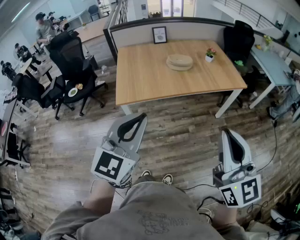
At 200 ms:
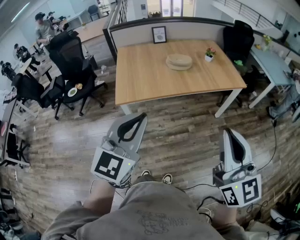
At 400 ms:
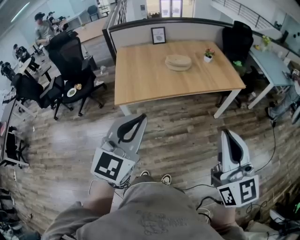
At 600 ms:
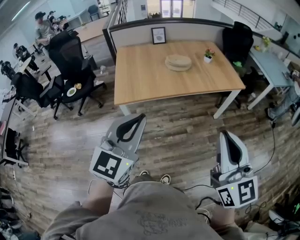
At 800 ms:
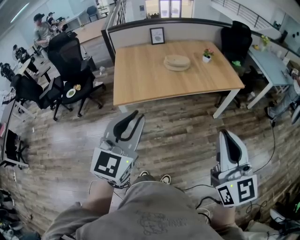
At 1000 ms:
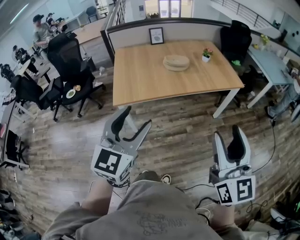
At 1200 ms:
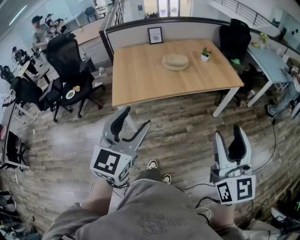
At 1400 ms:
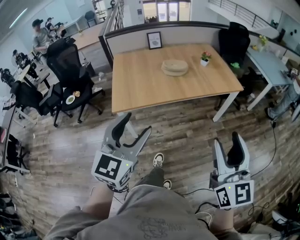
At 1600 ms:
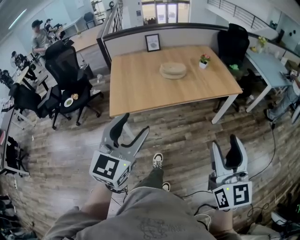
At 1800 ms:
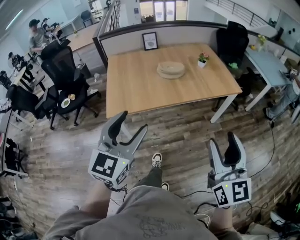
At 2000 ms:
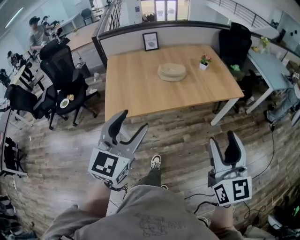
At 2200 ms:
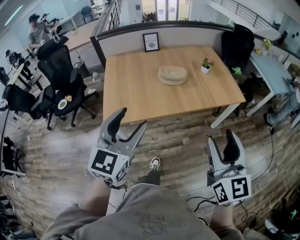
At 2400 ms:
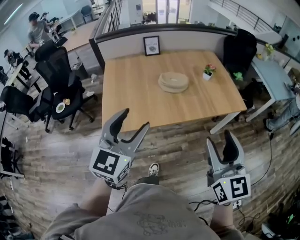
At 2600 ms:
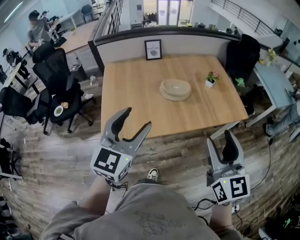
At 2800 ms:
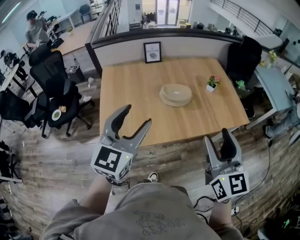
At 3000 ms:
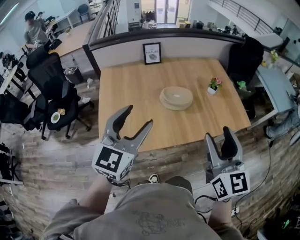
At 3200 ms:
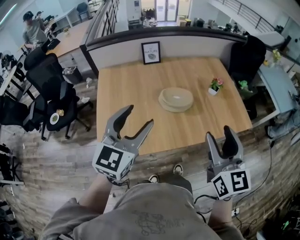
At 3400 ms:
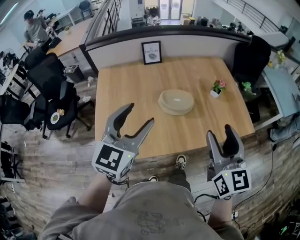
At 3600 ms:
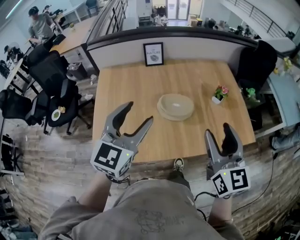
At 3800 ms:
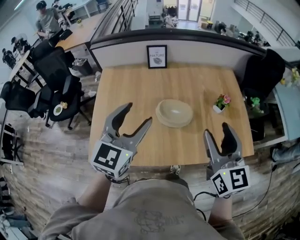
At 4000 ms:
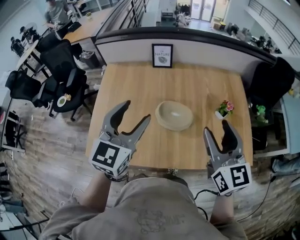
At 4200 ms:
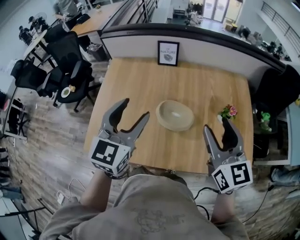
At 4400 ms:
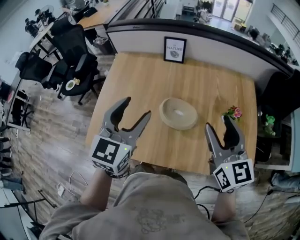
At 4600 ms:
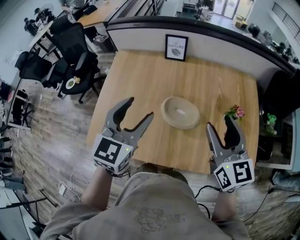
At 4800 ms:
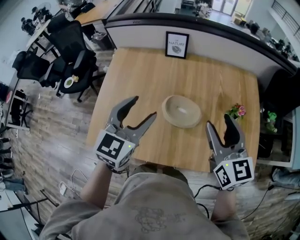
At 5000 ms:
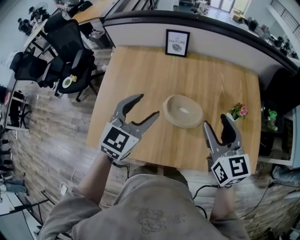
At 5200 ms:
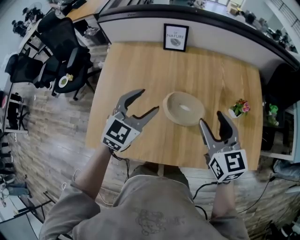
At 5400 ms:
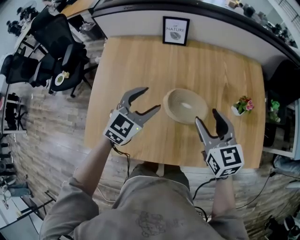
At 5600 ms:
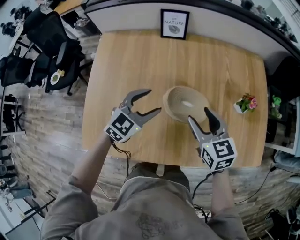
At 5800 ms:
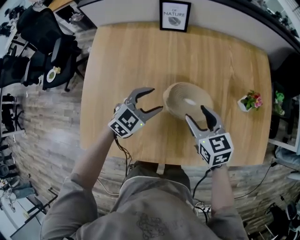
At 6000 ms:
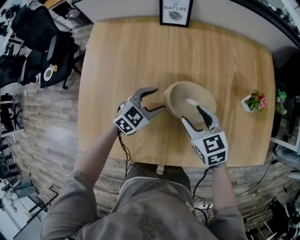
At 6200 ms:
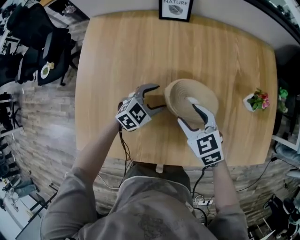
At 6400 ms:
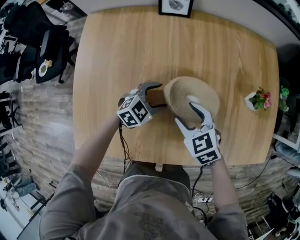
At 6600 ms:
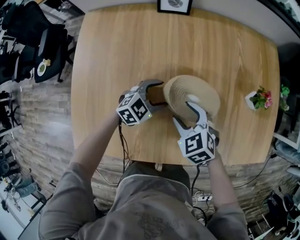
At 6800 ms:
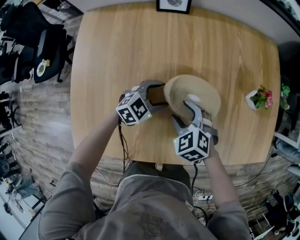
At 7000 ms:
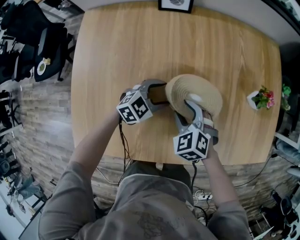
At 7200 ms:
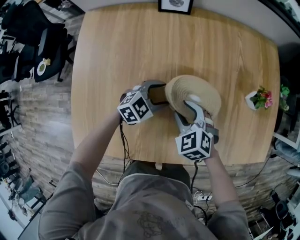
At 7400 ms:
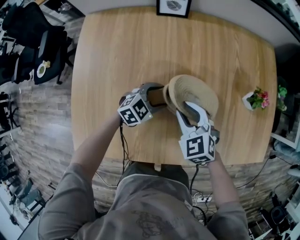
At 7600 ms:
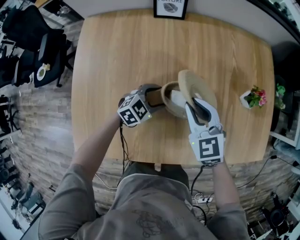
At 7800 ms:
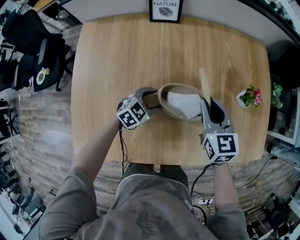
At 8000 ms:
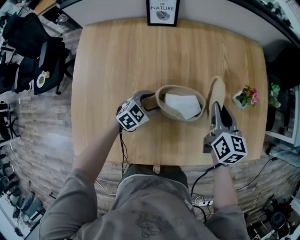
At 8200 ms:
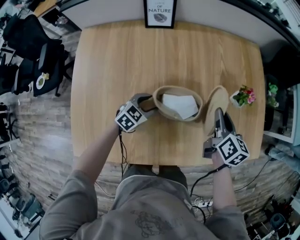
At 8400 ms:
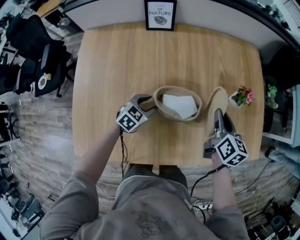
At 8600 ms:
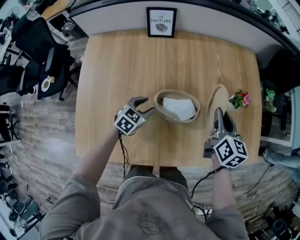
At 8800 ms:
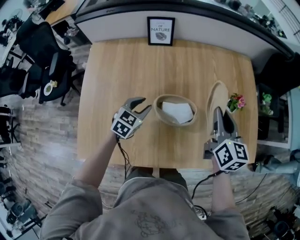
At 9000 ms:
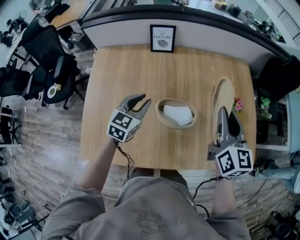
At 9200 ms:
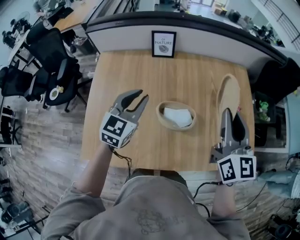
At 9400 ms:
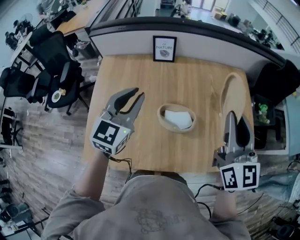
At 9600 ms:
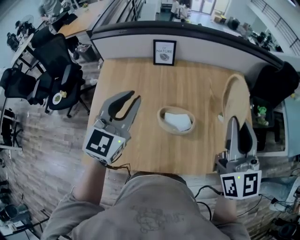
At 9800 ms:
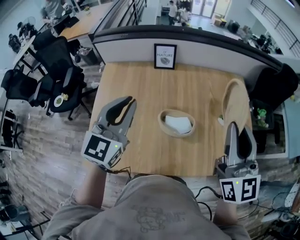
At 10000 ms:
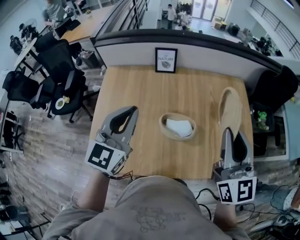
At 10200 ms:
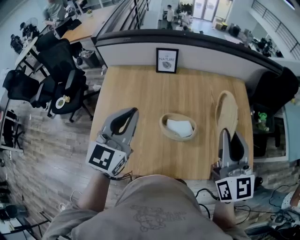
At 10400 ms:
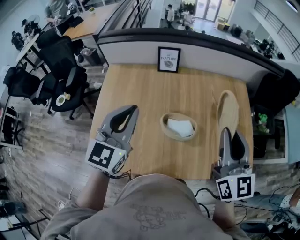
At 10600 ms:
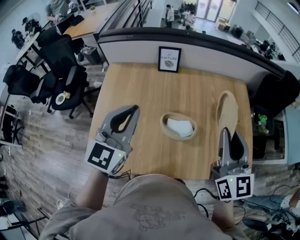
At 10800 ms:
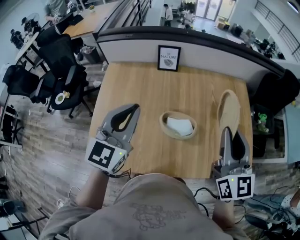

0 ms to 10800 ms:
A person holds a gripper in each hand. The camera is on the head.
0 ms to 1600 ms: The right gripper changes place by approximately 5 cm, and opens. Meanwhile the left gripper shifts approximately 5 cm forward, and opens its fingers.
1600 ms to 3000 ms: Both grippers move forward, about 35 cm.
3000 ms to 4600 ms: The right gripper shifts by approximately 30 cm, and rotates some 30 degrees. The left gripper changes place by some 20 cm, and swivels some 20 degrees.
4600 ms to 6200 ms: The right gripper goes approximately 35 cm downward and to the left, and points its fingers about 40 degrees further downward. The left gripper goes approximately 35 cm downward, and swivels approximately 50 degrees.
6200 ms to 7800 ms: The right gripper heads forward, to the right and upward, covering approximately 10 cm, swivels some 30 degrees, and closes up.
7800 ms to 9200 ms: Both grippers move upward, some 30 cm. The left gripper swivels about 40 degrees, and closes up. Meanwhile the right gripper swivels about 30 degrees.
9200 ms to 10800 ms: The left gripper moves upward and backward, roughly 15 cm, while the right gripper moves backward, about 5 cm.

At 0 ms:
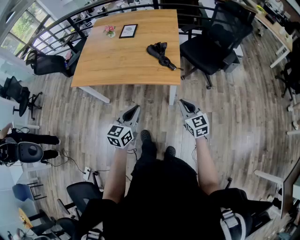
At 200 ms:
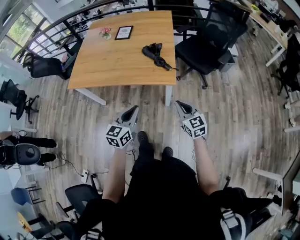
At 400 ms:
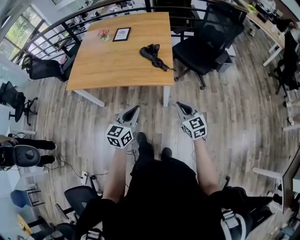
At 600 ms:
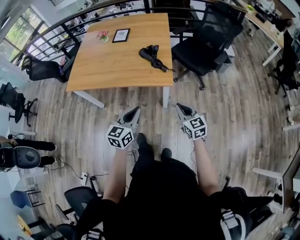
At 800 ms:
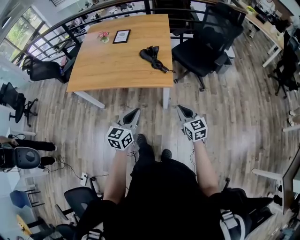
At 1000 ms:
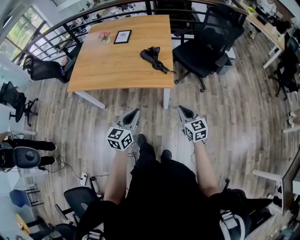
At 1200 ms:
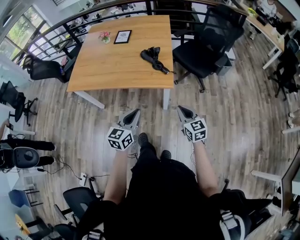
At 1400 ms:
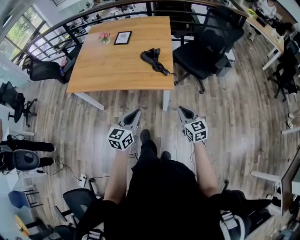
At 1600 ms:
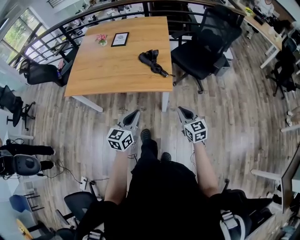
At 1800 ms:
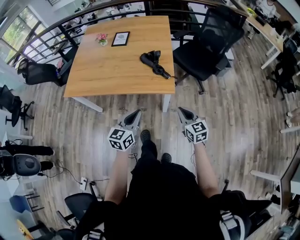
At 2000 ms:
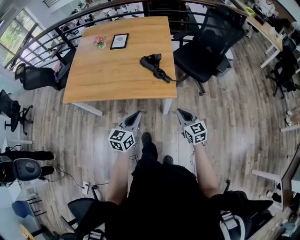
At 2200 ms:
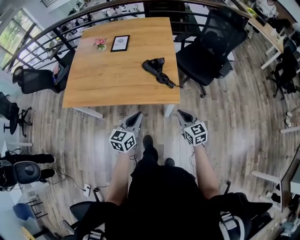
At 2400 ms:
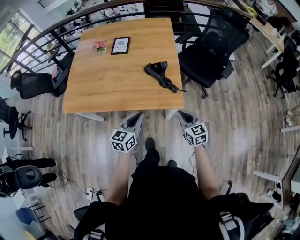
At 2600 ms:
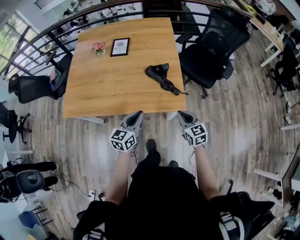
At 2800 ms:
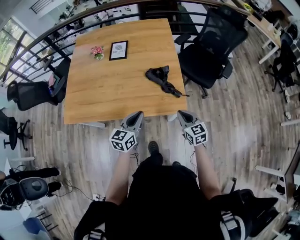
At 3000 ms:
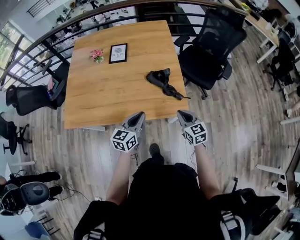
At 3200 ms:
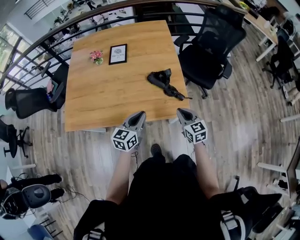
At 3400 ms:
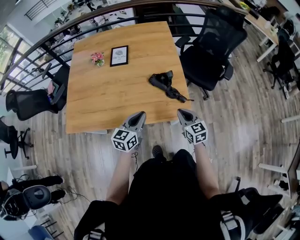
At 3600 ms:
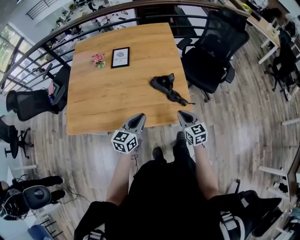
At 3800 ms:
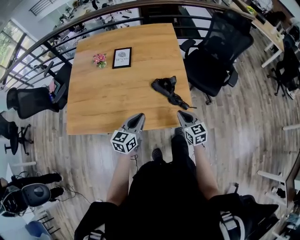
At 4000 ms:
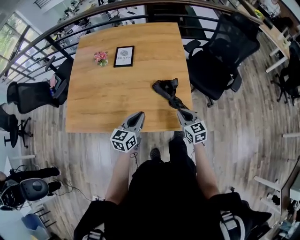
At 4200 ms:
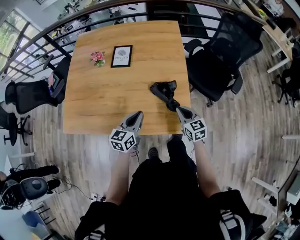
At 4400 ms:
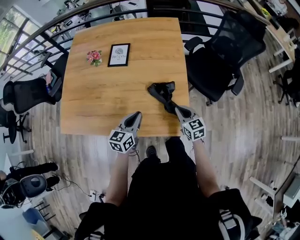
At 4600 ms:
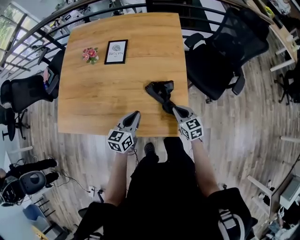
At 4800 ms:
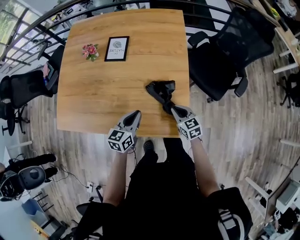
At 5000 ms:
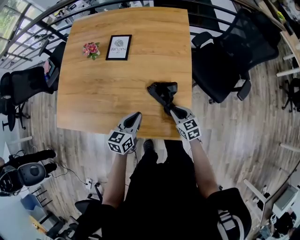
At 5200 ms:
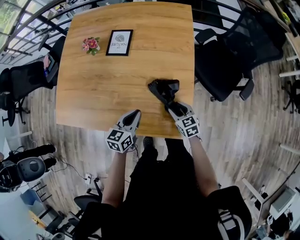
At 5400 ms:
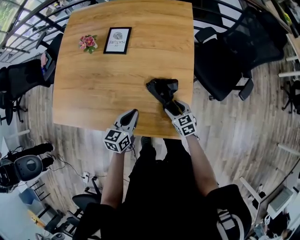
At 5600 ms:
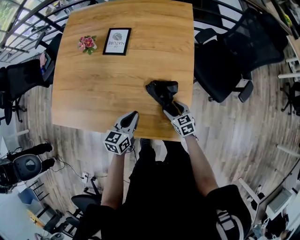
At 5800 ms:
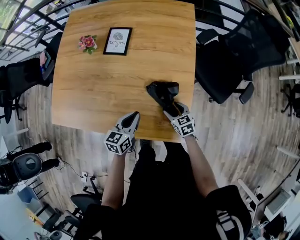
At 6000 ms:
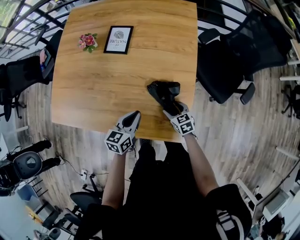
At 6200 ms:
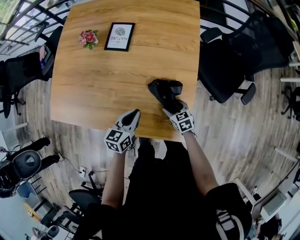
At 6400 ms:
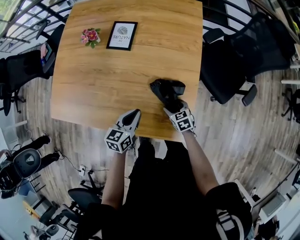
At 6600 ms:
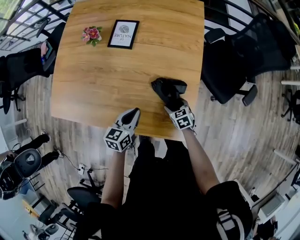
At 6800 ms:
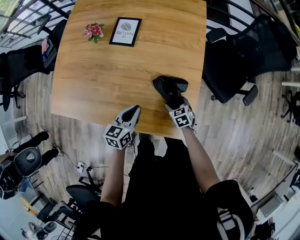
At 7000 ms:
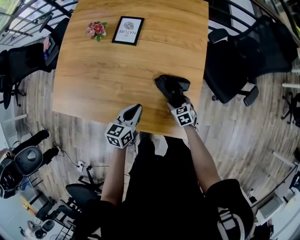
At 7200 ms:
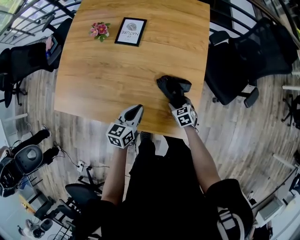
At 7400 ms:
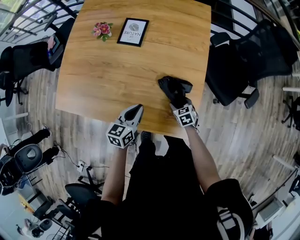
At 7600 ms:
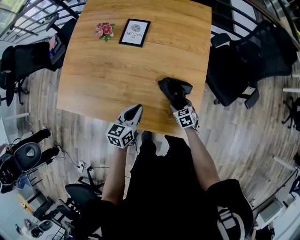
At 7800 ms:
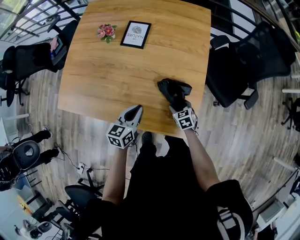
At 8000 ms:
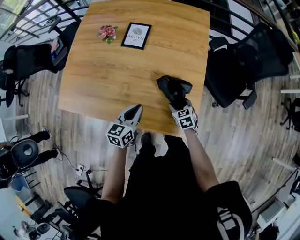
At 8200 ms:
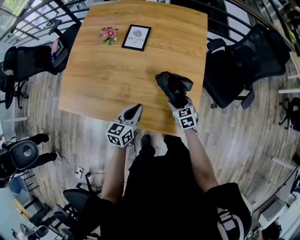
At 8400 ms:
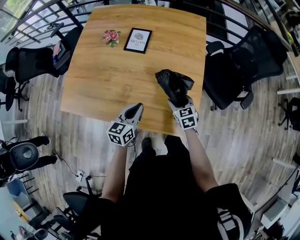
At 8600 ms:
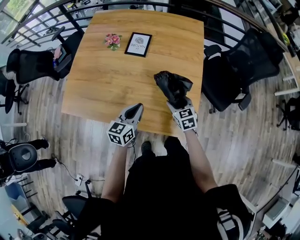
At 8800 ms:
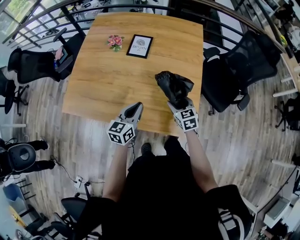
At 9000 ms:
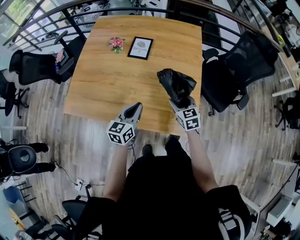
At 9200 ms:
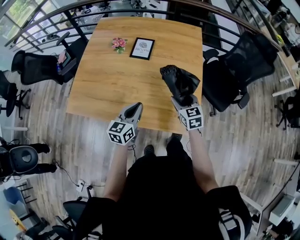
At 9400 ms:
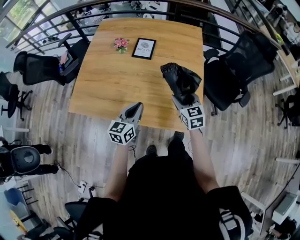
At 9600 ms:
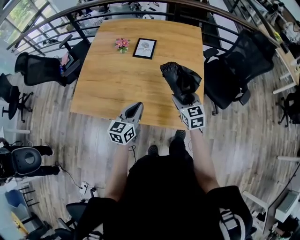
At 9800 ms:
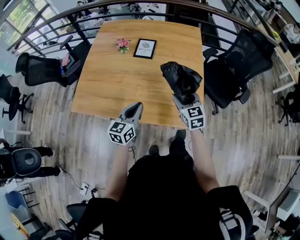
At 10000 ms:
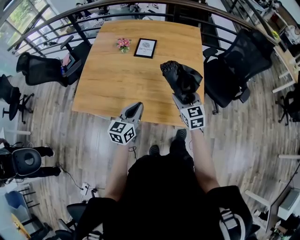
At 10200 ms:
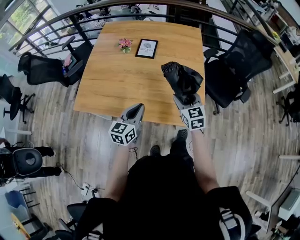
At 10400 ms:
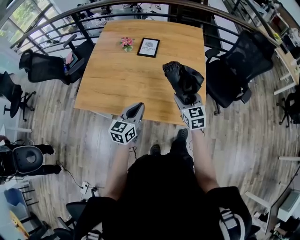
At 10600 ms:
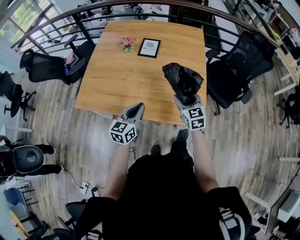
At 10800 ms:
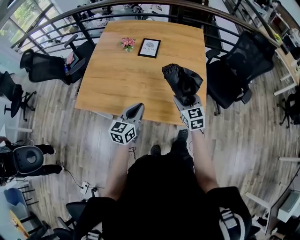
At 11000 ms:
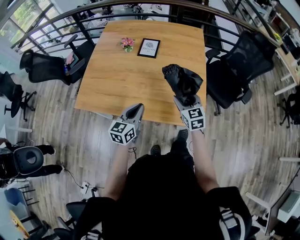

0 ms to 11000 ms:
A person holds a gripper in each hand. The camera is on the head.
0 ms to 1600 ms: The grippers stay close to where they were, moving slightly.
1600 ms to 3200 ms: The grippers both shift forward and to the left by roughly 25 cm.
3200 ms to 4800 ms: Both grippers travel together forward and downward, some 15 cm.
4800 ms to 6200 ms: The left gripper ends up roughly 5 cm from where it was, while the right gripper travels downward by about 10 cm, and opens its fingers.
6200 ms to 7800 ms: The left gripper ends up about 5 cm from where it was.
7800 ms to 9400 ms: The left gripper goes approximately 15 cm upward, to the left and backward. The right gripper shifts roughly 25 cm upward, and changes its angle by approximately 30 degrees.
9400 ms to 11000 ms: The left gripper changes place by approximately 5 cm, while the right gripper ends up roughly 5 cm from where it was.

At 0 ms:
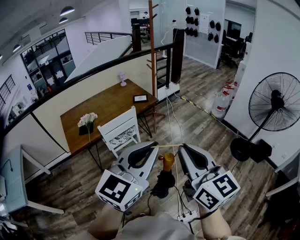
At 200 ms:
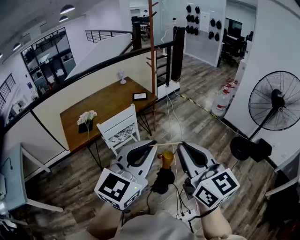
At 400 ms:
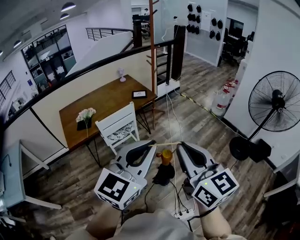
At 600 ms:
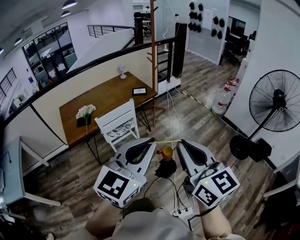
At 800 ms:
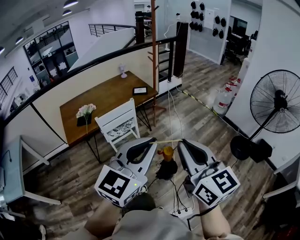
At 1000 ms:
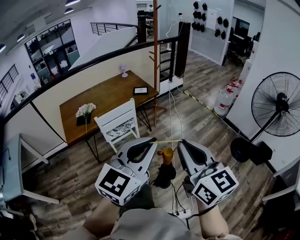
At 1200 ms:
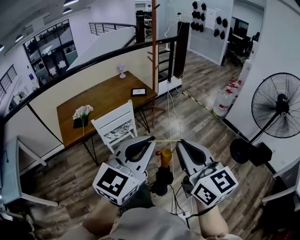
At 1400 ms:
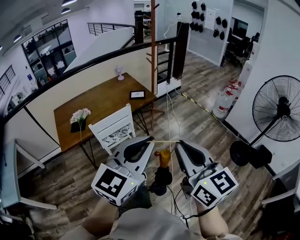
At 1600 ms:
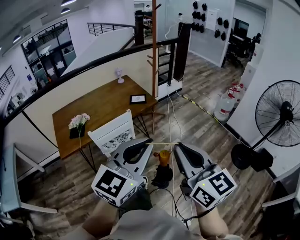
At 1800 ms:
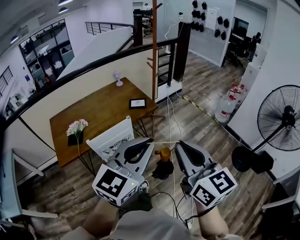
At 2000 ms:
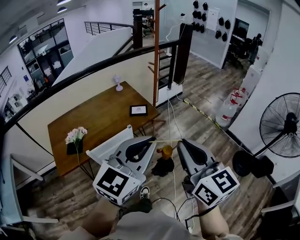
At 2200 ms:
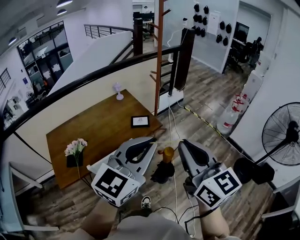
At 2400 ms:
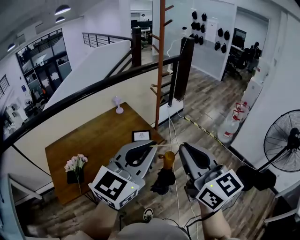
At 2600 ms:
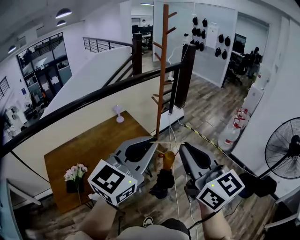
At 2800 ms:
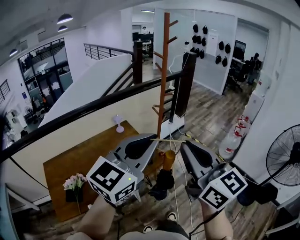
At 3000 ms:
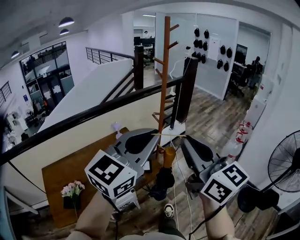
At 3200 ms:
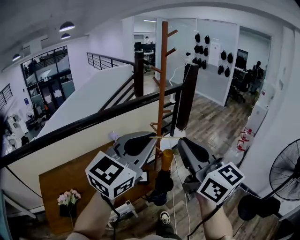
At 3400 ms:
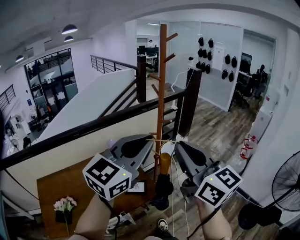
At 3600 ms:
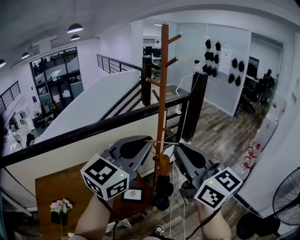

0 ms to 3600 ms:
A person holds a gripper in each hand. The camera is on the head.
0 ms to 1800 ms: Both grippers move forward, some 25 cm.
1800 ms to 3600 ms: The pair of grippers is taken forward, roughly 60 cm.
